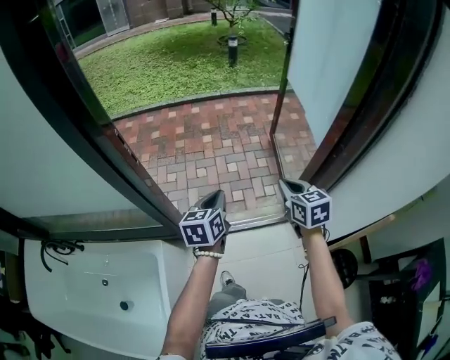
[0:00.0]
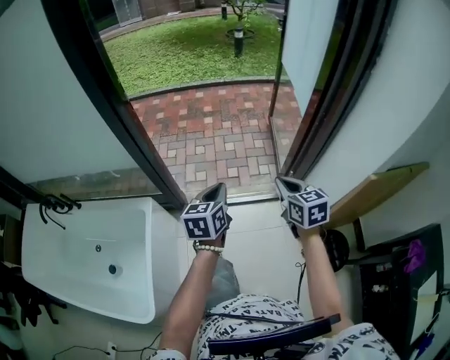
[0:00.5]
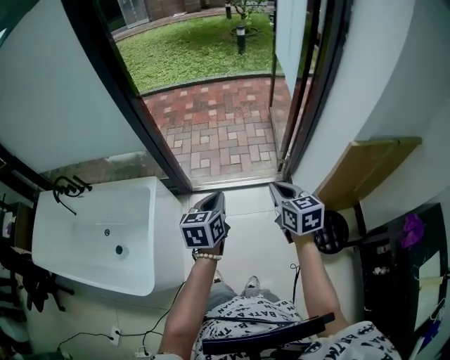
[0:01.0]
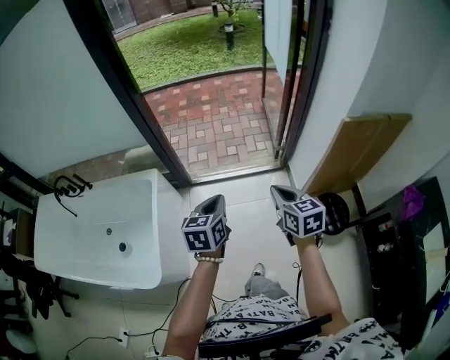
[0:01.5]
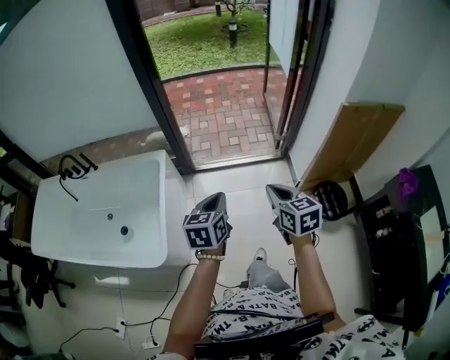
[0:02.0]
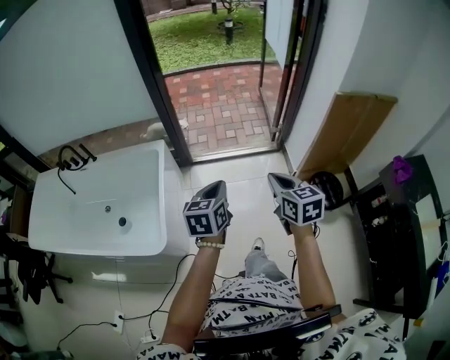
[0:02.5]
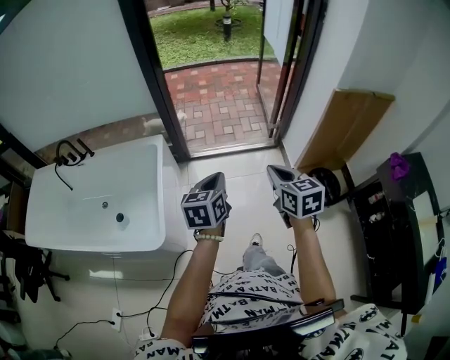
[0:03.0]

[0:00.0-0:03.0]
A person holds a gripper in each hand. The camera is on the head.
0.0 to 1.5 s: The pair of grippers is taken backward, some 40 cm.
1.5 to 3.0 s: The two grippers go some 15 cm backward and to the left.

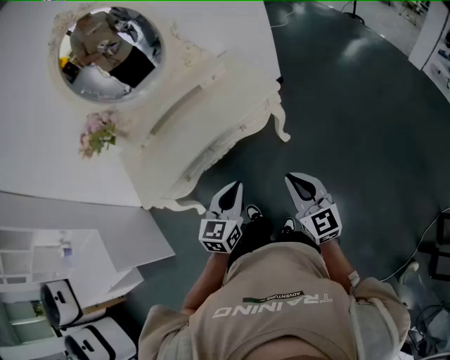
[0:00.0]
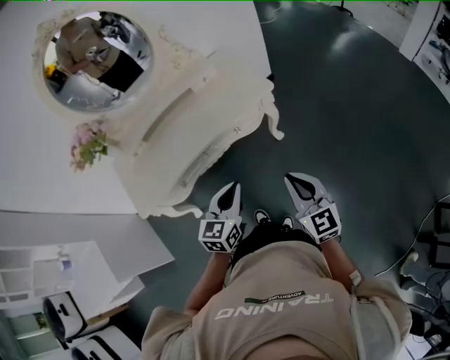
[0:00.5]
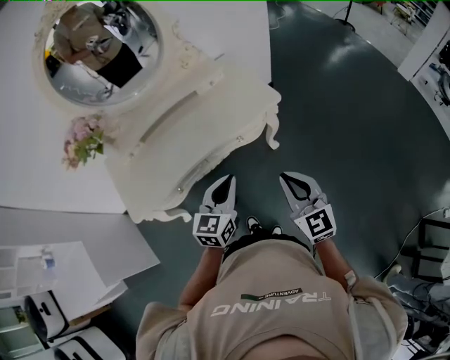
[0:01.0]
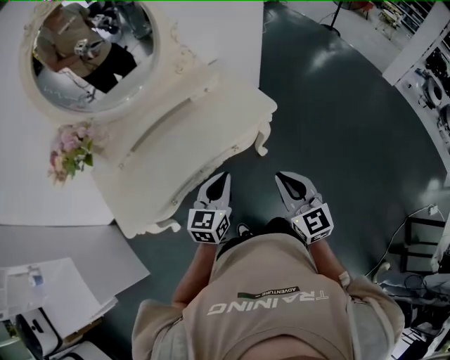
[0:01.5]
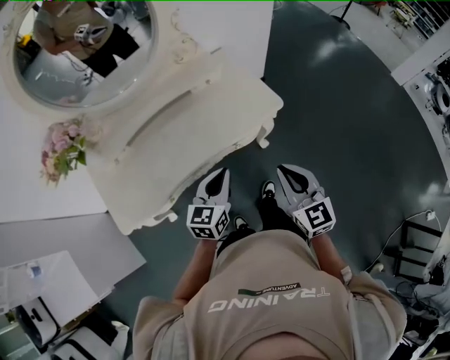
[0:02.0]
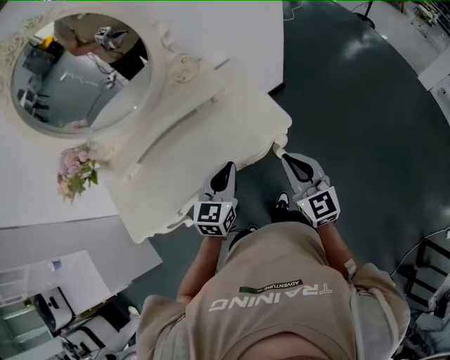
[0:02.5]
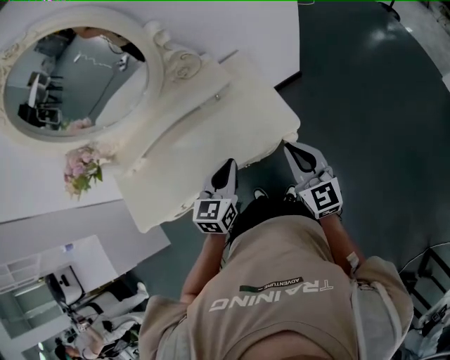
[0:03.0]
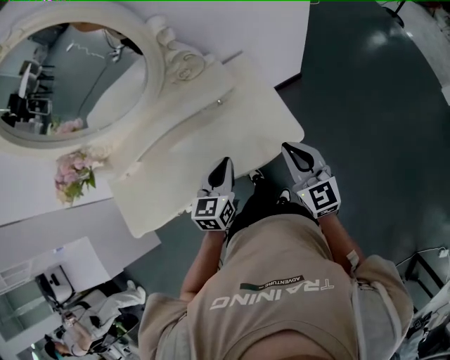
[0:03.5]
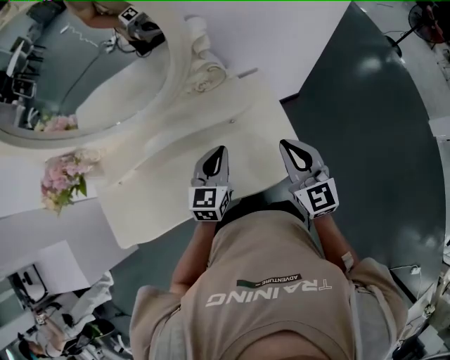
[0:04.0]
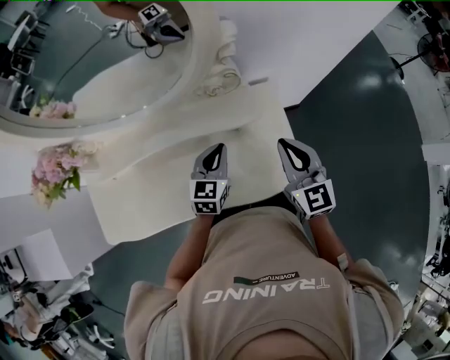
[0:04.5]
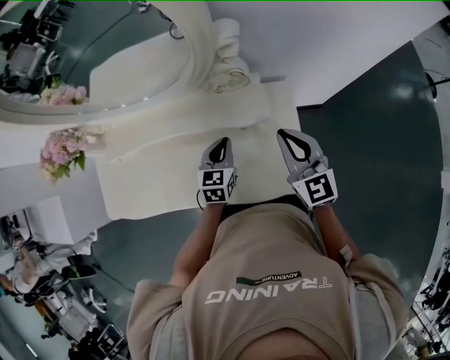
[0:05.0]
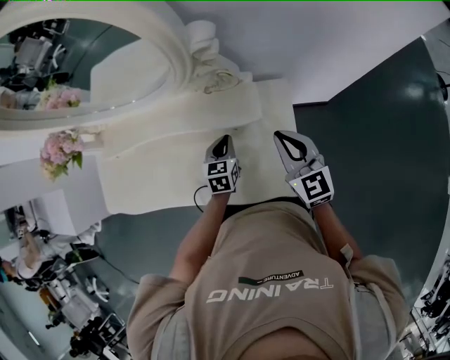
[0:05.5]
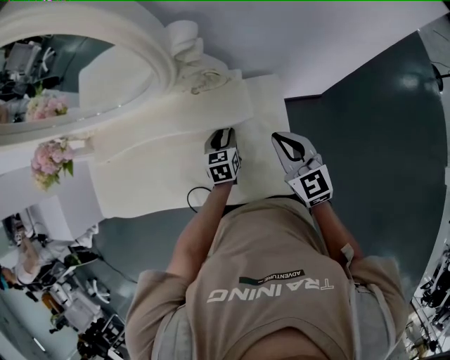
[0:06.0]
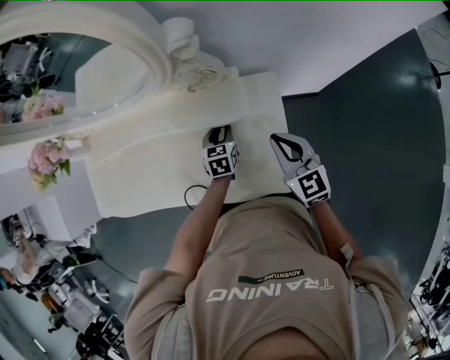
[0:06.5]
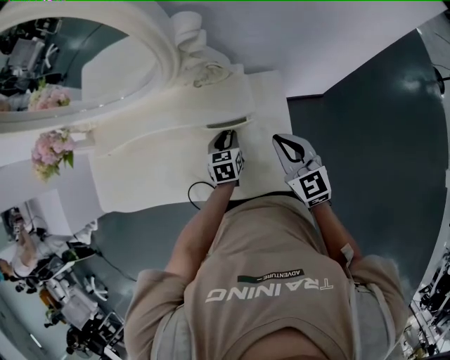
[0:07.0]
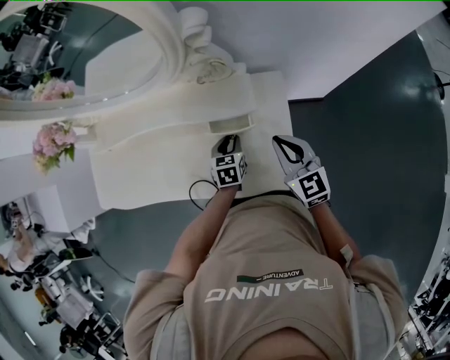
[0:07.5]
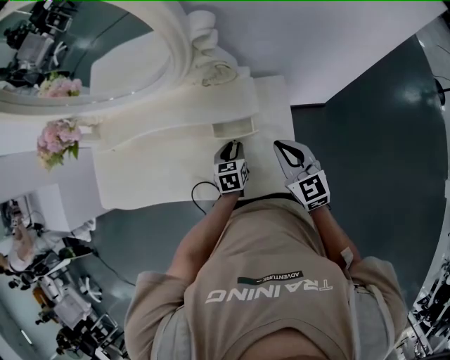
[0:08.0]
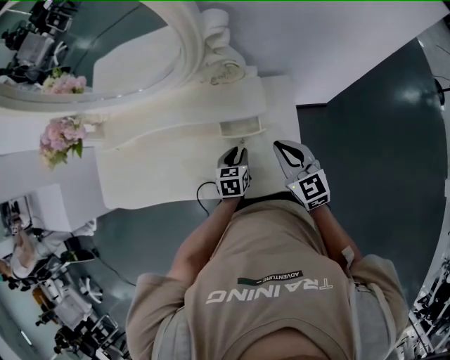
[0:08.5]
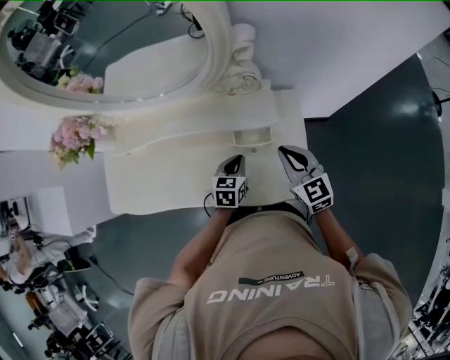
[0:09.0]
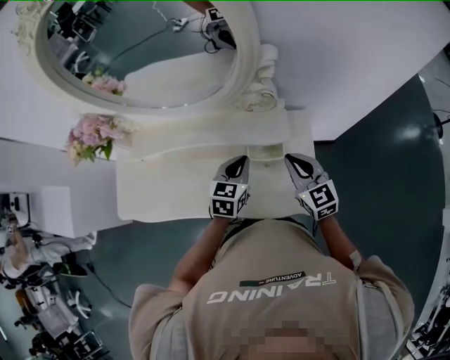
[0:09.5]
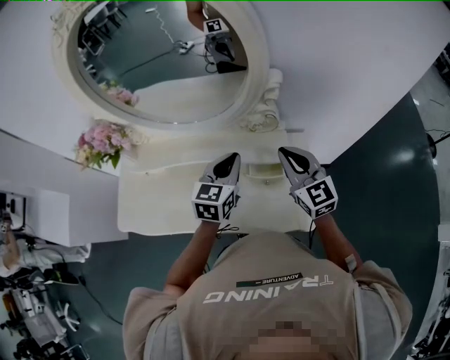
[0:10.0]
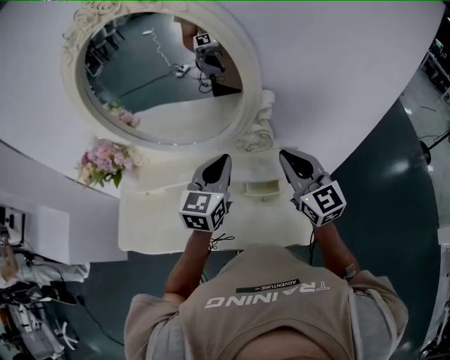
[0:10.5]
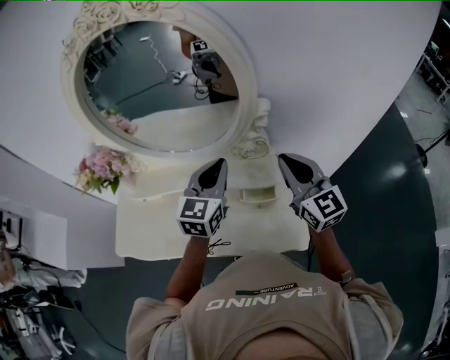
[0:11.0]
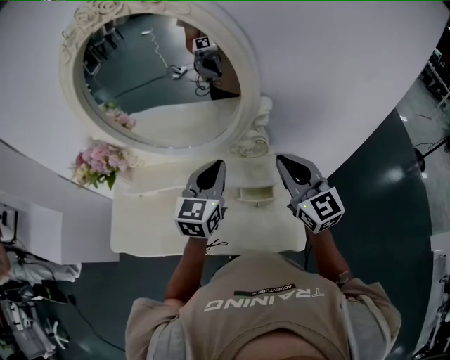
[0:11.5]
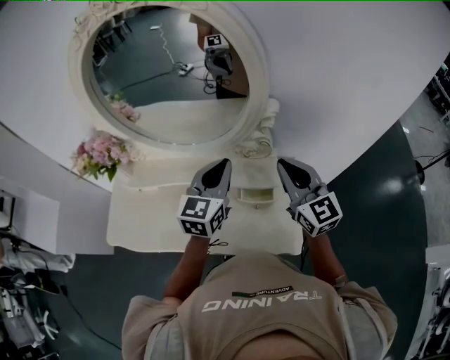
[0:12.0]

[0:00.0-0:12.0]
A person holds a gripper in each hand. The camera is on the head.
0.0 to 2.0 s: The two grippers go roughly 20 cm forward.
2.0 to 4.0 s: The two grippers go some 30 cm forward.
4.0 to 6.0 s: The right gripper heads forward and downward, covering roughly 15 cm, and turns by roughly 20 degrees, while the left gripper goes roughly 20 cm downward and forward, rotates roughly 40 degrees, and opens.
6.0 to 8.0 s: The left gripper heads backward, covering some 5 cm.
8.0 to 10.0 s: The right gripper travels upward, to the left and forward by approximately 20 cm. Meanwhile the left gripper shifts some 25 cm upward, turns by about 30 degrees, and closes.
10.0 to 12.0 s: Both grippers move upward, some 10 cm.

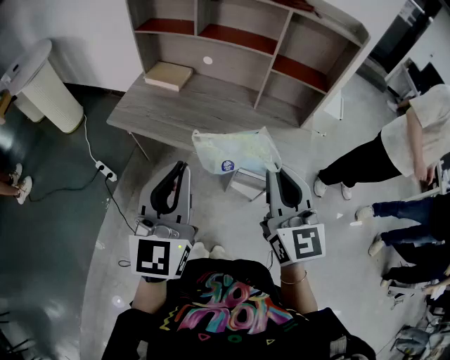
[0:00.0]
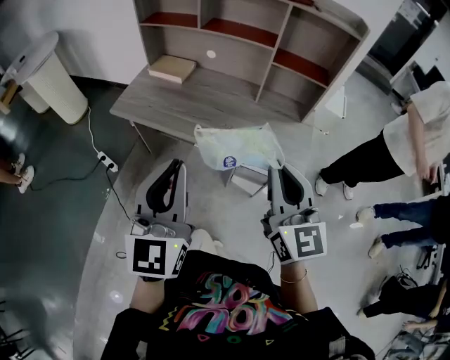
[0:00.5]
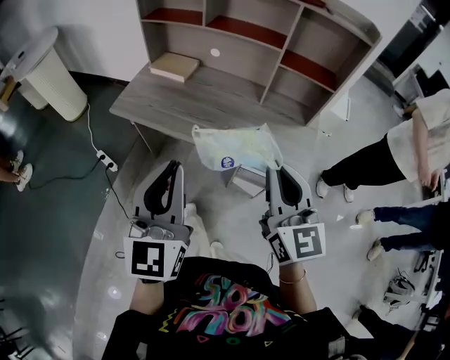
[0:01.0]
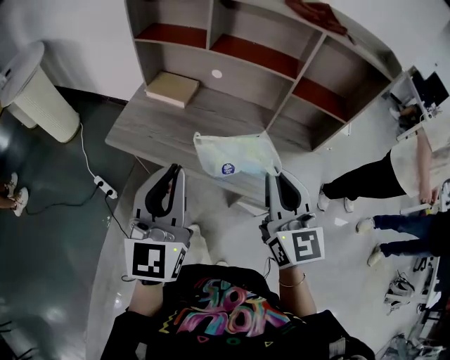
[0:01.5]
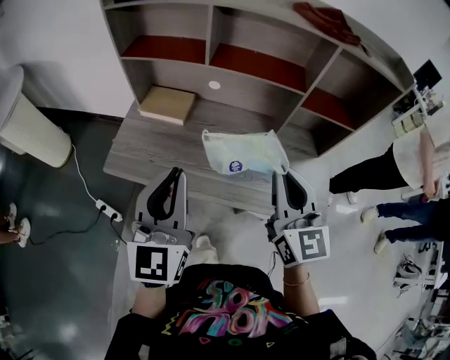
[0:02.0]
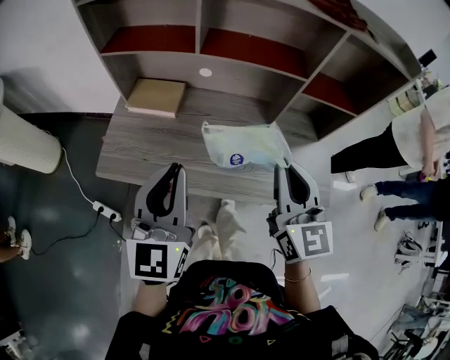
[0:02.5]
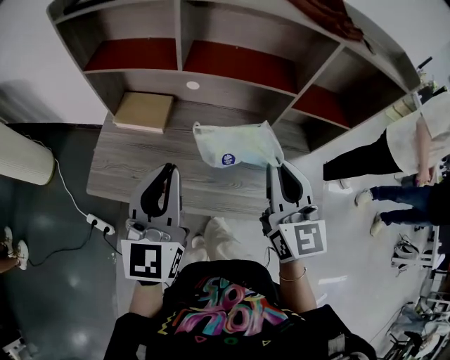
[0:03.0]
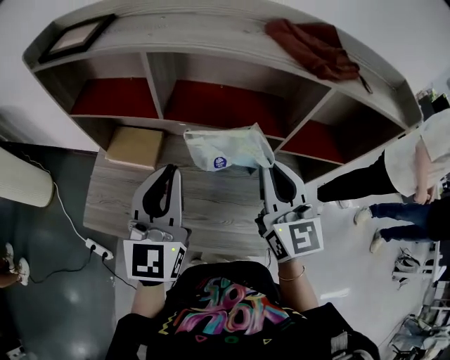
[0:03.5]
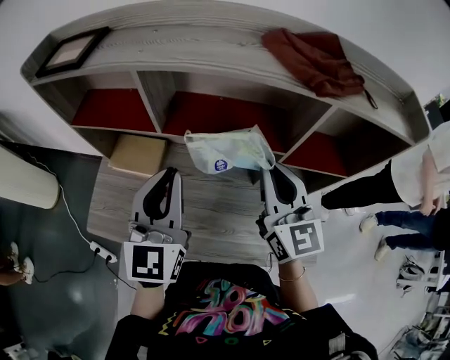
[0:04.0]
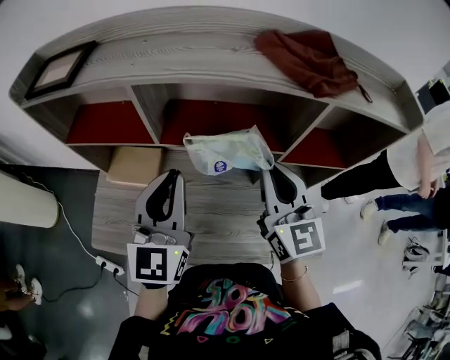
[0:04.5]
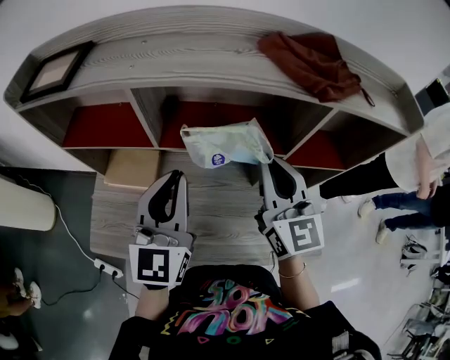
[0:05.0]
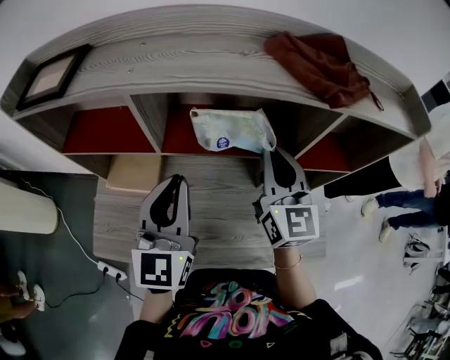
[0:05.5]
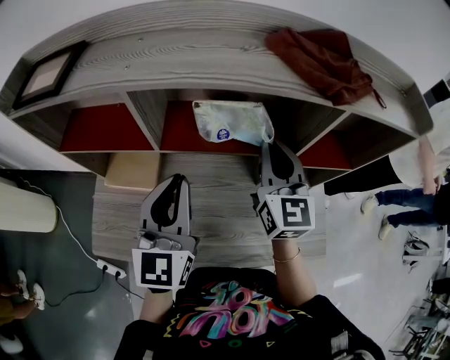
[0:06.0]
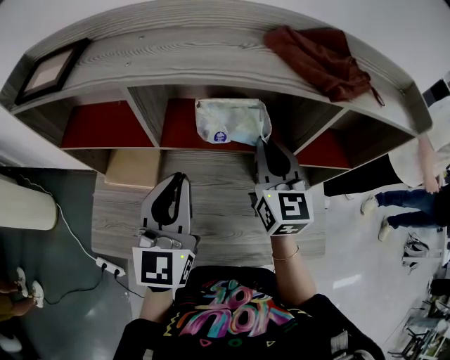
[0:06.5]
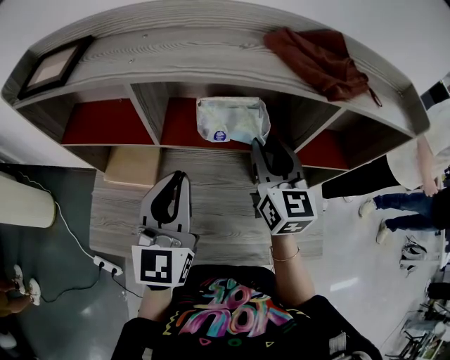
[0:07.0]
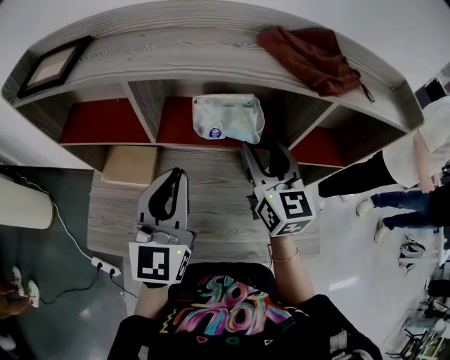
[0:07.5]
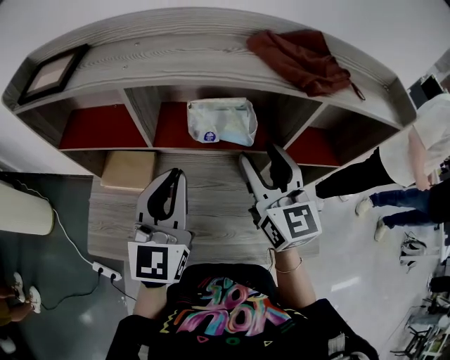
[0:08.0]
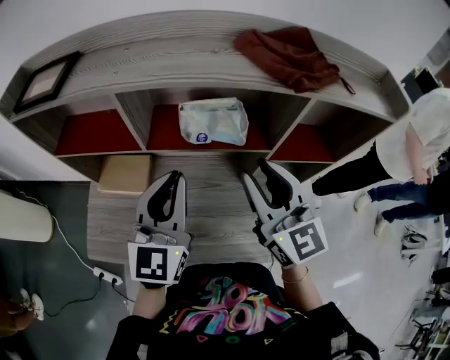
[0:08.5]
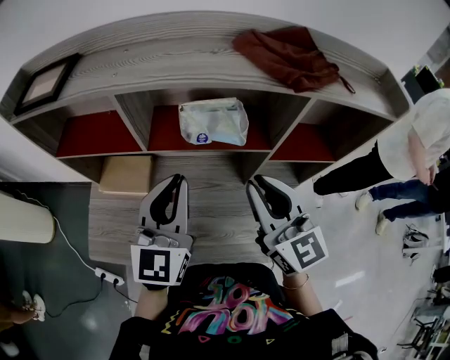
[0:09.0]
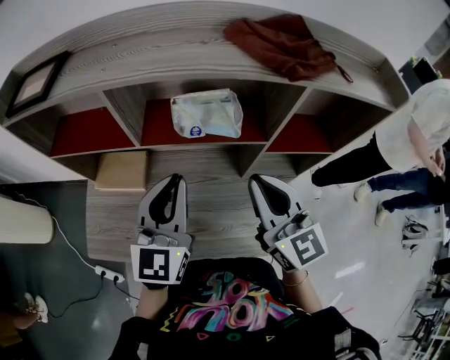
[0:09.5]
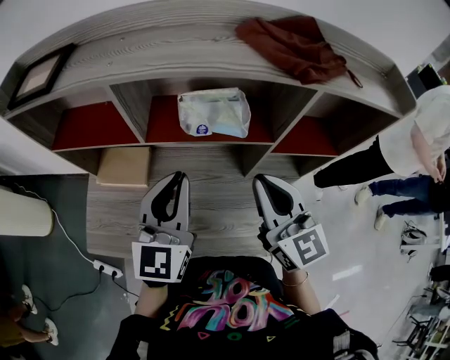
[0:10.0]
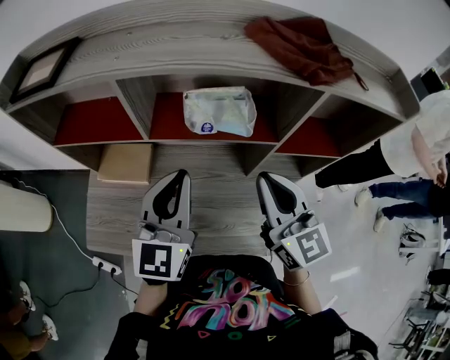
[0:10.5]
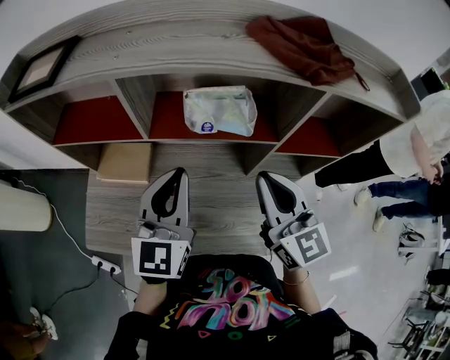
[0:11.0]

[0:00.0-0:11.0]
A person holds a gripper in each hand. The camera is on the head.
0.0 to 2.0 s: Both grippers travel together forward and to the left, about 30 cm.
2.0 to 3.5 s: The grippers both shift forward by some 20 cm.
3.5 to 5.5 s: The grippers both shift forward by some 10 cm.
5.5 to 7.5 s: The right gripper opens up.
7.5 to 9.0 s: The right gripper shifts roughly 10 cm backward, and closes its fingers.
9.0 to 11.0 s: The grippers make only small movements.

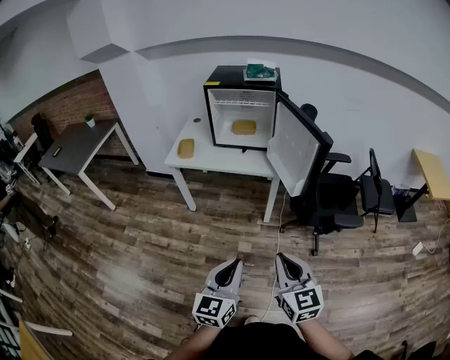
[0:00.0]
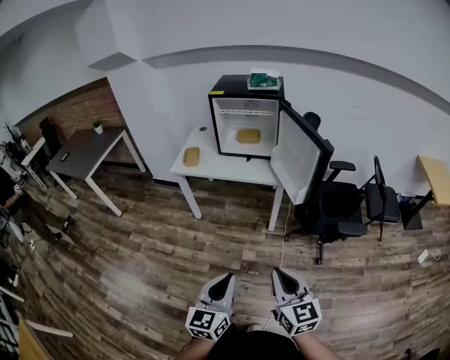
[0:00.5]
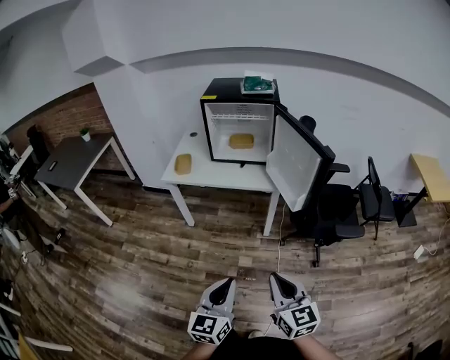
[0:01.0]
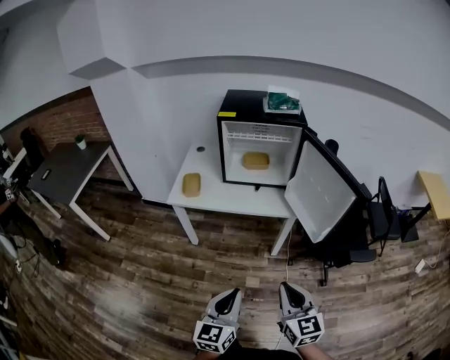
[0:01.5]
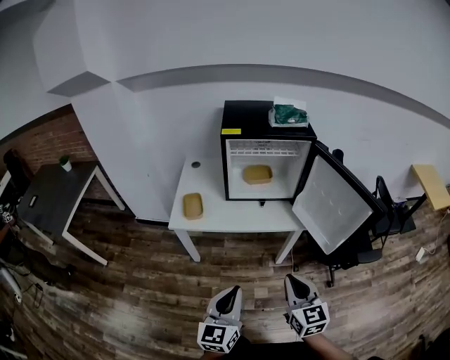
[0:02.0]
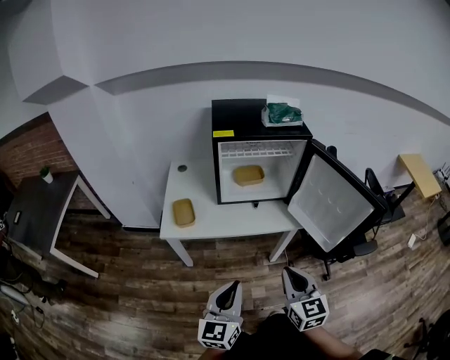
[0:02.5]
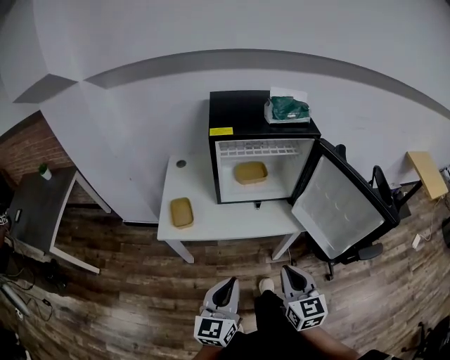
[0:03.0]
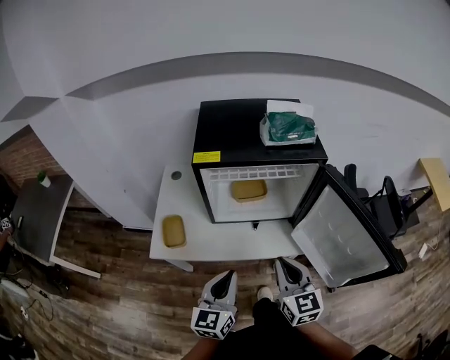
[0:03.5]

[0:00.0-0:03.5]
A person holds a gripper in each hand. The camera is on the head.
0.0 to 2.0 s: The two grippers go roughly 35 cm forward and to the left.
2.0 to 3.5 s: The two grippers go some 30 cm forward.
